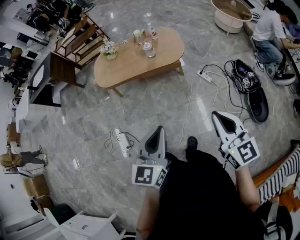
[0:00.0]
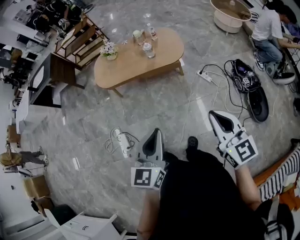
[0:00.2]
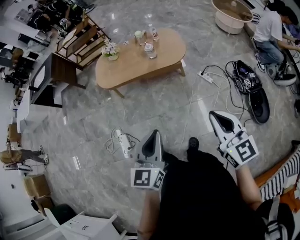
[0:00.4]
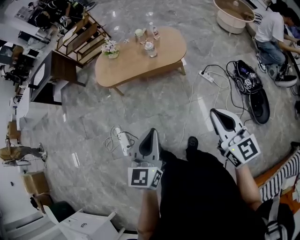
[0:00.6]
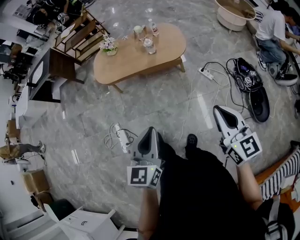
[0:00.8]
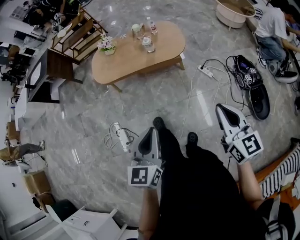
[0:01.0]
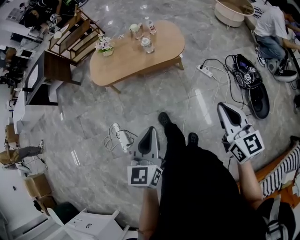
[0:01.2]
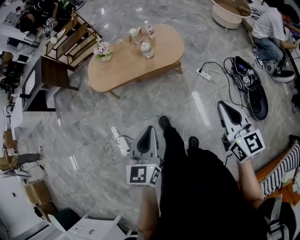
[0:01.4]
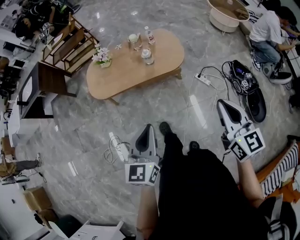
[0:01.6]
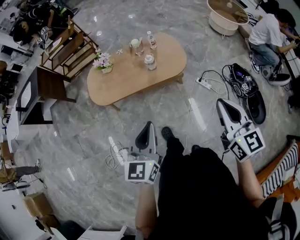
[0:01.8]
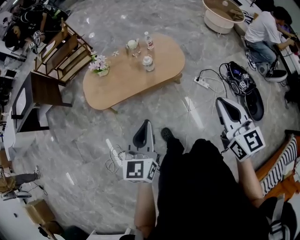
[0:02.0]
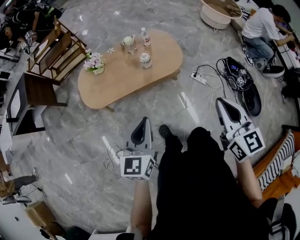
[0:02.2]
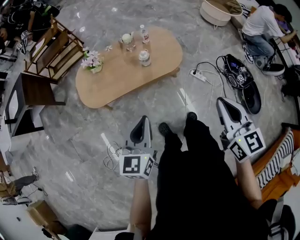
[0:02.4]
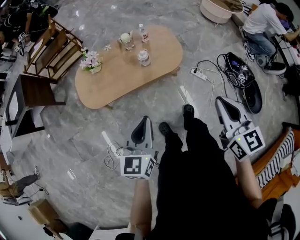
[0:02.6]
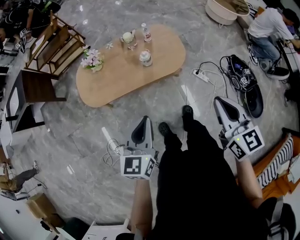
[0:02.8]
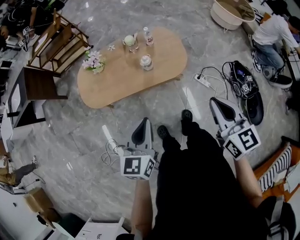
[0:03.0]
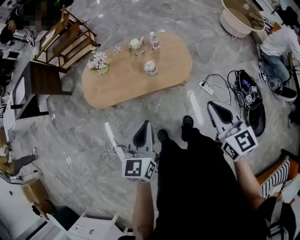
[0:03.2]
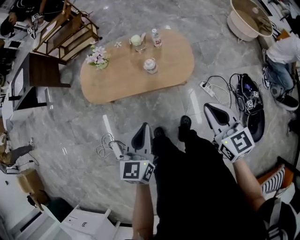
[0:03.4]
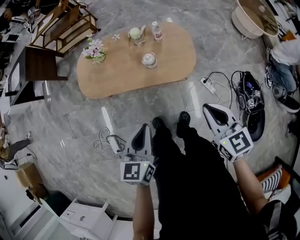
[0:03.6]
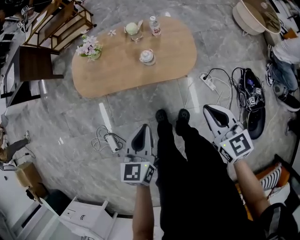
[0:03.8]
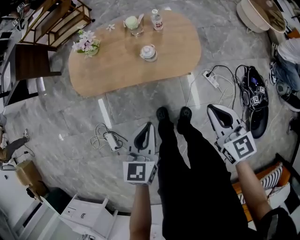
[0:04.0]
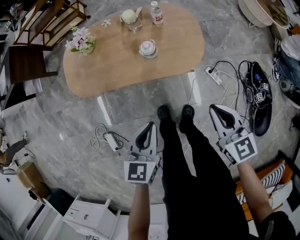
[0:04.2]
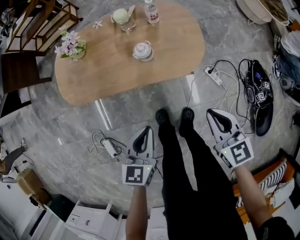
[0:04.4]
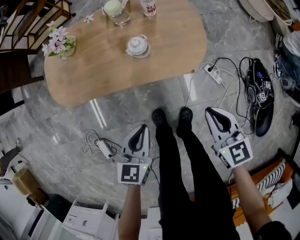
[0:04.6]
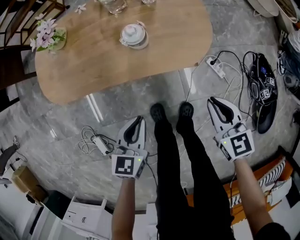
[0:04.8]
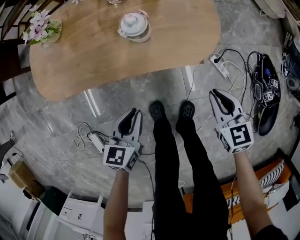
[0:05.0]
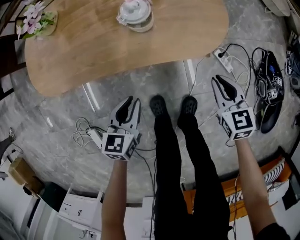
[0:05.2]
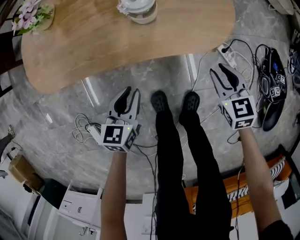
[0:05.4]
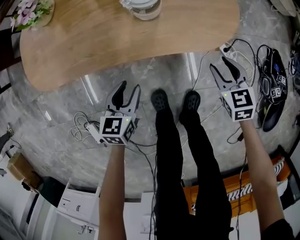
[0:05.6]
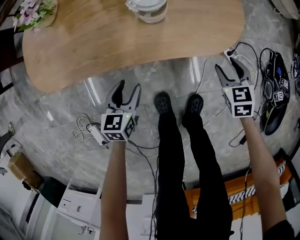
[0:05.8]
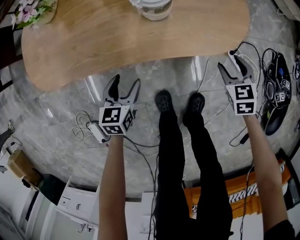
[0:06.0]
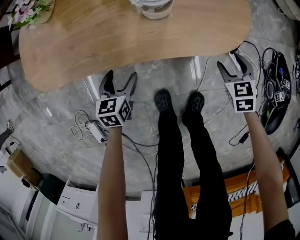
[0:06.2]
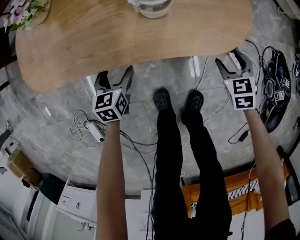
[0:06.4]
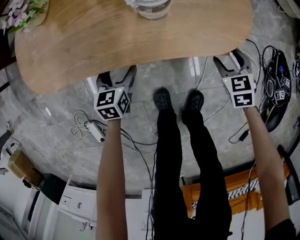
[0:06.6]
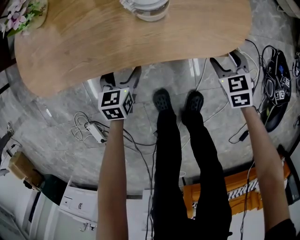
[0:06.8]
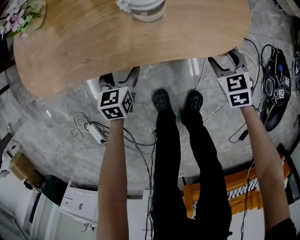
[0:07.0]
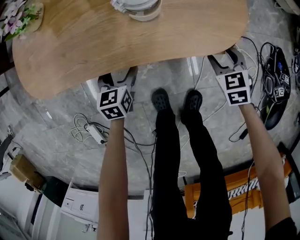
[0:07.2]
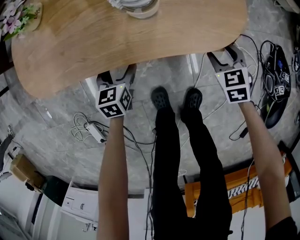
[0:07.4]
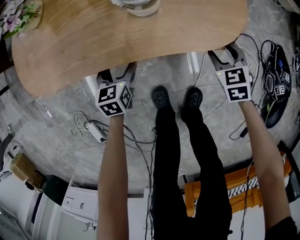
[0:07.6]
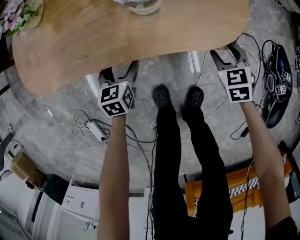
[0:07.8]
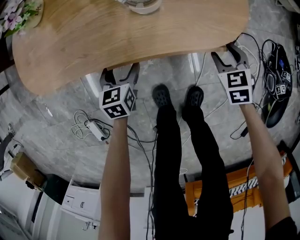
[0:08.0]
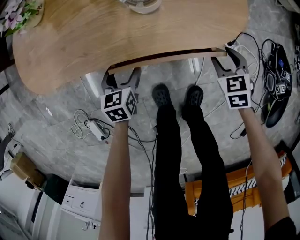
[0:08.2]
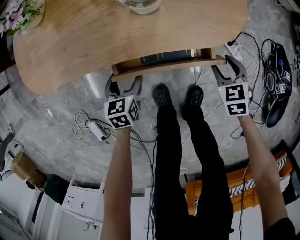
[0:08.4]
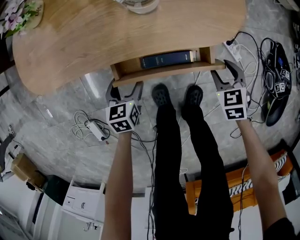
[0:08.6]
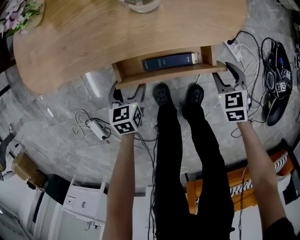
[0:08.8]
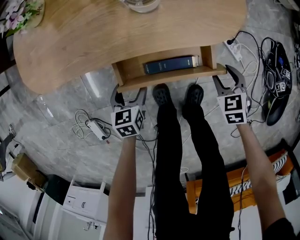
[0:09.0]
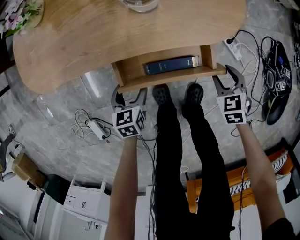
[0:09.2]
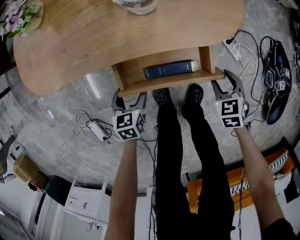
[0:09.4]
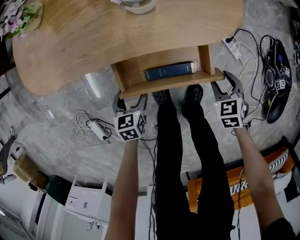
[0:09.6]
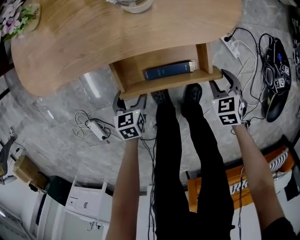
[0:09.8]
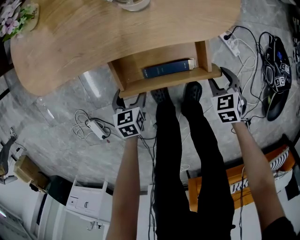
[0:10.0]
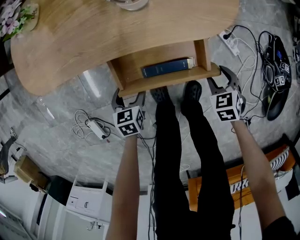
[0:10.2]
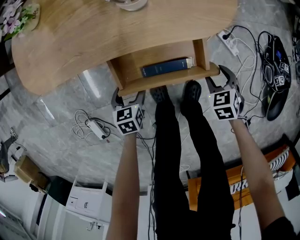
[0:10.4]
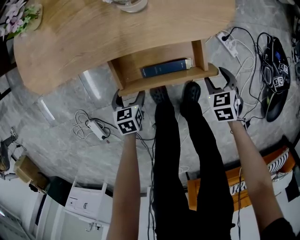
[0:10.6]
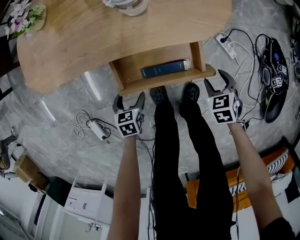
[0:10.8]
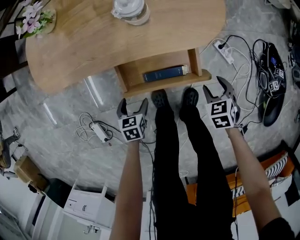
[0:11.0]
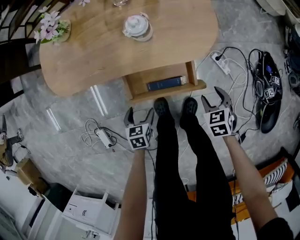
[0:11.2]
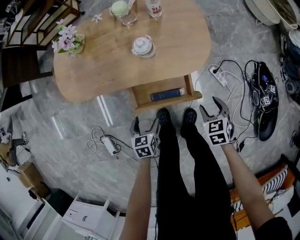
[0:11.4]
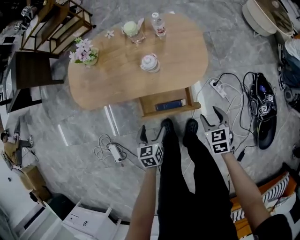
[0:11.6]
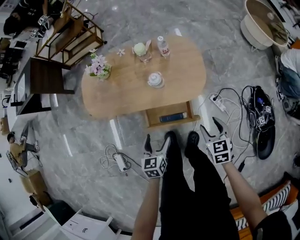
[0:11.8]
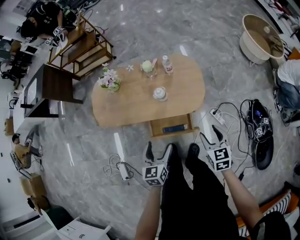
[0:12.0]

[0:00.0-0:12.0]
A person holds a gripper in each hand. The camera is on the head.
0:00.0 to 0:01.6: The right gripper moves forward, about 15 cm, while the left gripper heads forward and to the left, covering approximately 20 cm.
0:01.6 to 0:03.0: The grippers both shift forward by about 20 cm.
0:03.0 to 0:04.4: The two grippers go approximately 25 cm downward.
0:04.4 to 0:06.0: Both grippers move downward, approximately 35 cm. The left gripper opens; the right gripper changes its angle by some 30 degrees, and opens.
0:06.0 to 0:07.6: The left gripper shifts about 5 cm forward.
0:07.6 to 0:09.0: Both grippers travel together backward, some 10 cm.
0:09.0 to 0:10.4: The grippers stay close to where they were, moving slightly.
0:10.4 to 0:12.0: Both grippers travel together upward, roughly 40 cm. The left gripper rotates roughly 30 degrees, while the right gripper changes its angle by roughly 30 degrees.

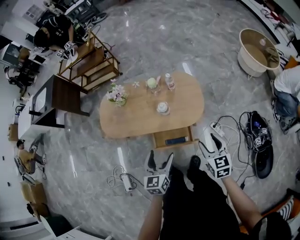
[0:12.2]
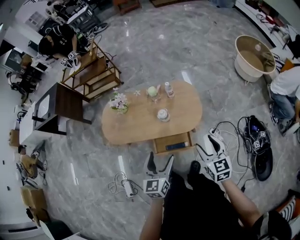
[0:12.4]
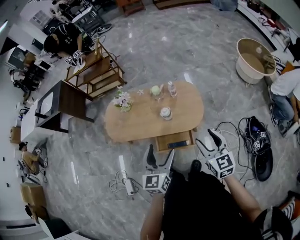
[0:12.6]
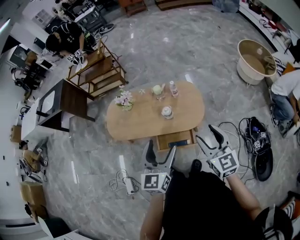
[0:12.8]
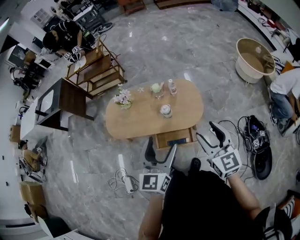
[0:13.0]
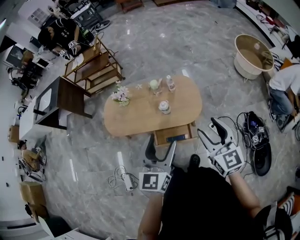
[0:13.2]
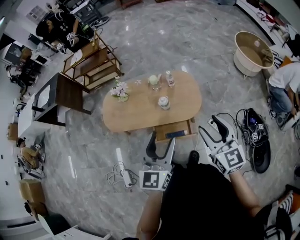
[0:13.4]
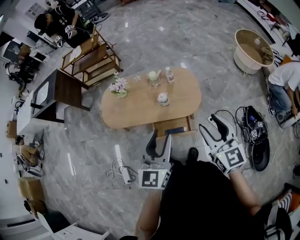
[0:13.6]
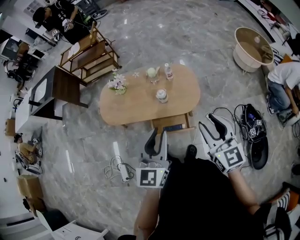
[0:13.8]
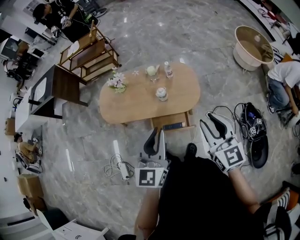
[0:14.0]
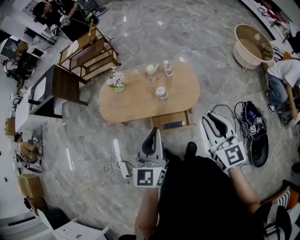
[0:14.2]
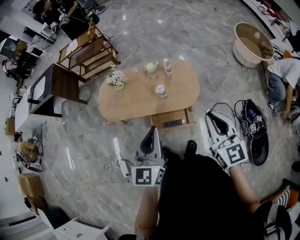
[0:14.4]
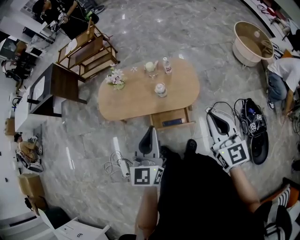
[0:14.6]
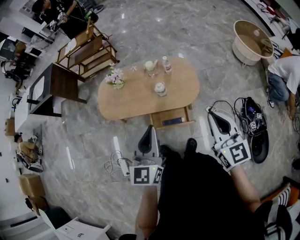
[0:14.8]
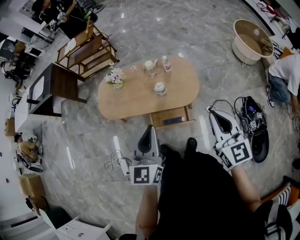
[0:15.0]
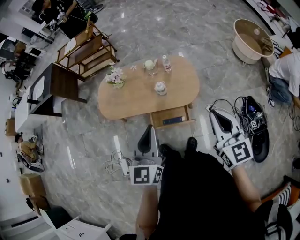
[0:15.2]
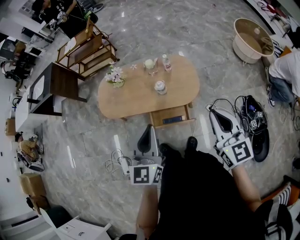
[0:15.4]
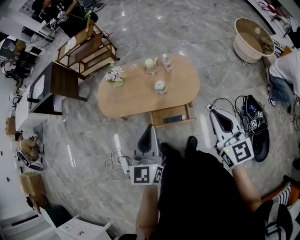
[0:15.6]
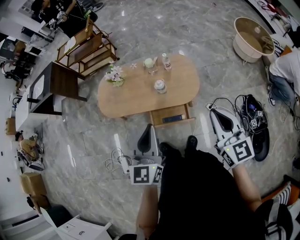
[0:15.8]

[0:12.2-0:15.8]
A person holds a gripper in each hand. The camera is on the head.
0:12.2 to 0:14.0: The two grippers go roughly 20 cm upward. The right gripper turns by roughly 20 degrees, and closes its fingers; the left gripper turns by approximately 20 degrees, and closes its fingers.
0:14.0 to 0:15.8: The right gripper closes.

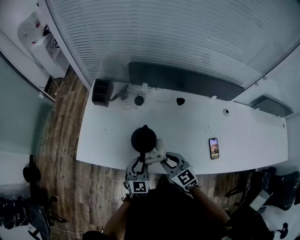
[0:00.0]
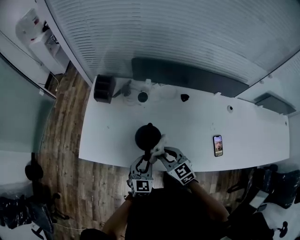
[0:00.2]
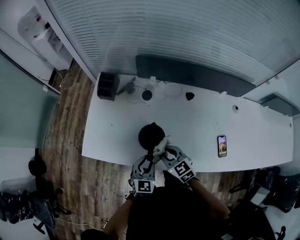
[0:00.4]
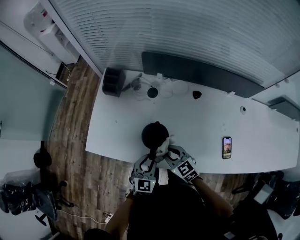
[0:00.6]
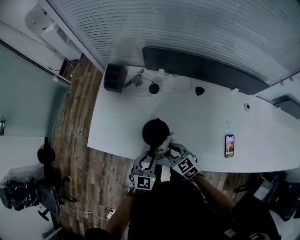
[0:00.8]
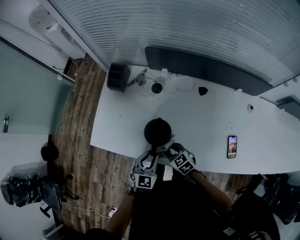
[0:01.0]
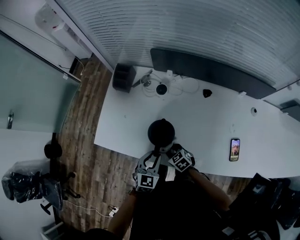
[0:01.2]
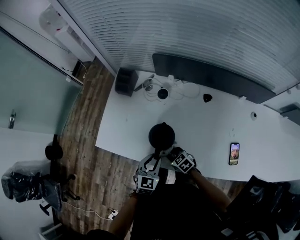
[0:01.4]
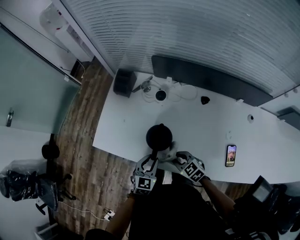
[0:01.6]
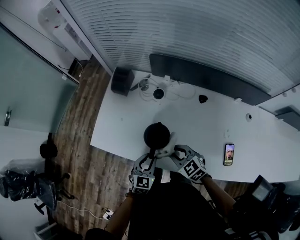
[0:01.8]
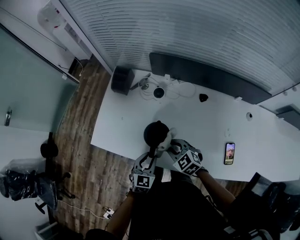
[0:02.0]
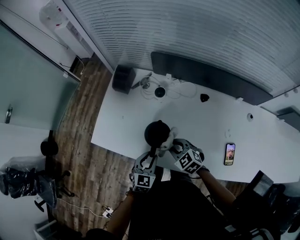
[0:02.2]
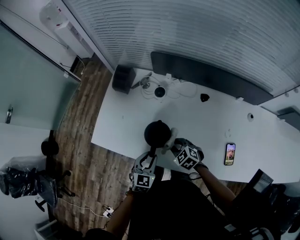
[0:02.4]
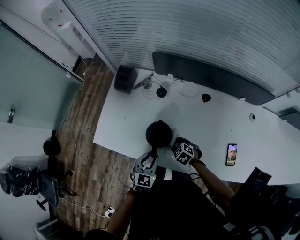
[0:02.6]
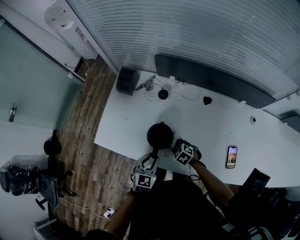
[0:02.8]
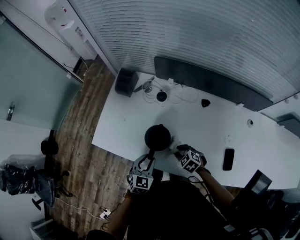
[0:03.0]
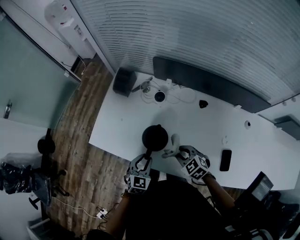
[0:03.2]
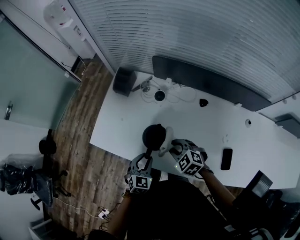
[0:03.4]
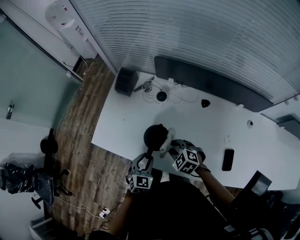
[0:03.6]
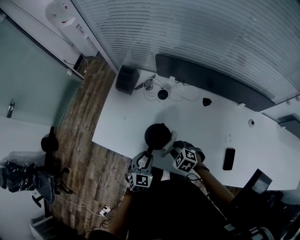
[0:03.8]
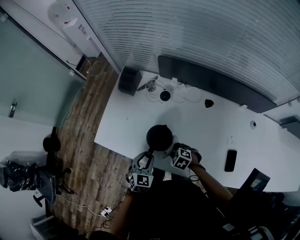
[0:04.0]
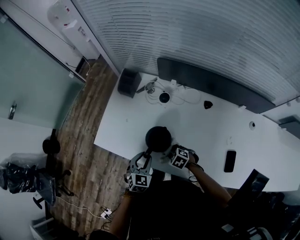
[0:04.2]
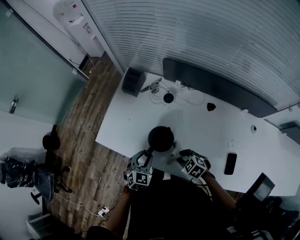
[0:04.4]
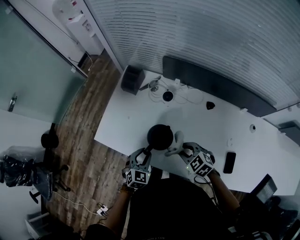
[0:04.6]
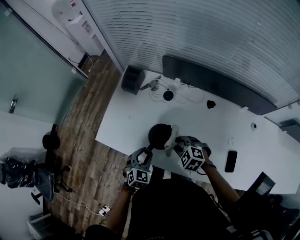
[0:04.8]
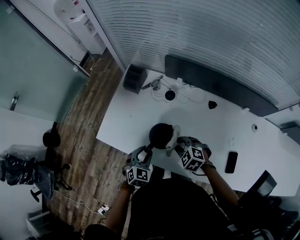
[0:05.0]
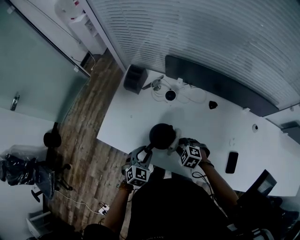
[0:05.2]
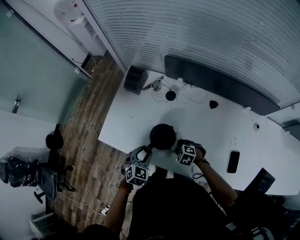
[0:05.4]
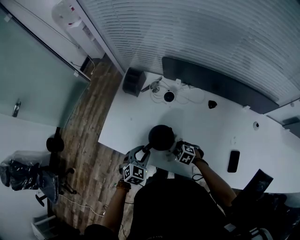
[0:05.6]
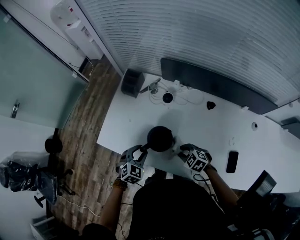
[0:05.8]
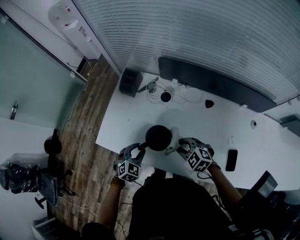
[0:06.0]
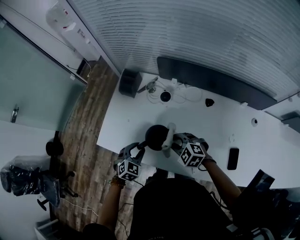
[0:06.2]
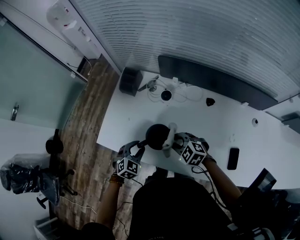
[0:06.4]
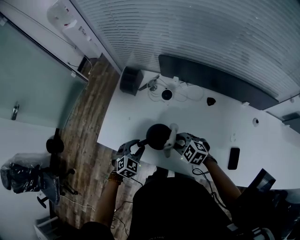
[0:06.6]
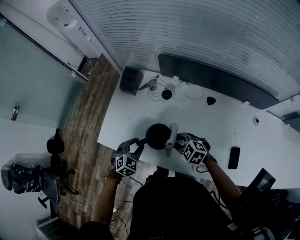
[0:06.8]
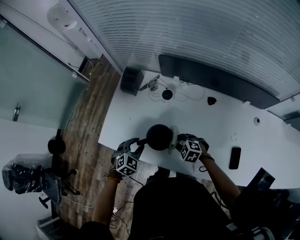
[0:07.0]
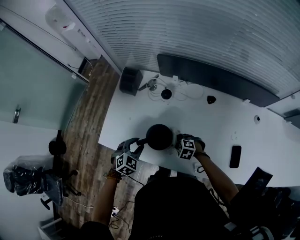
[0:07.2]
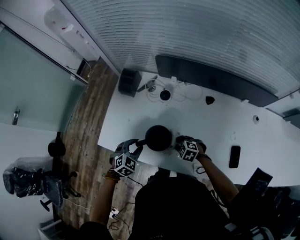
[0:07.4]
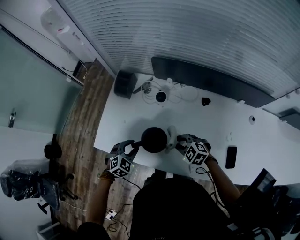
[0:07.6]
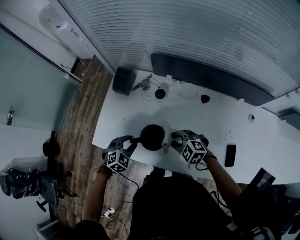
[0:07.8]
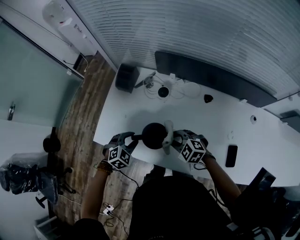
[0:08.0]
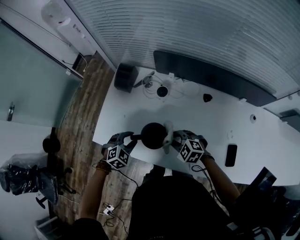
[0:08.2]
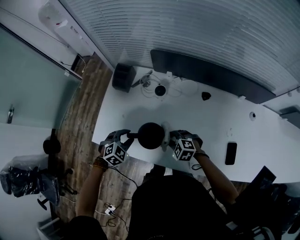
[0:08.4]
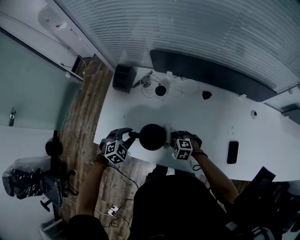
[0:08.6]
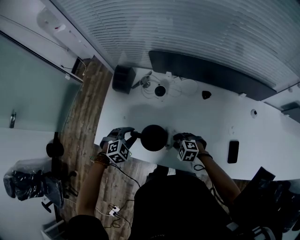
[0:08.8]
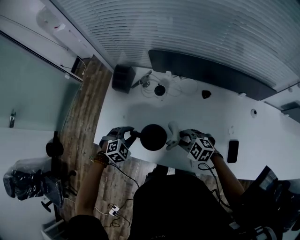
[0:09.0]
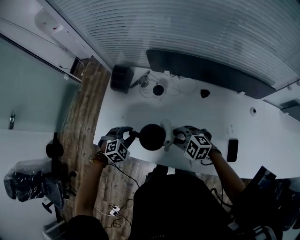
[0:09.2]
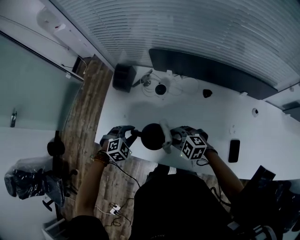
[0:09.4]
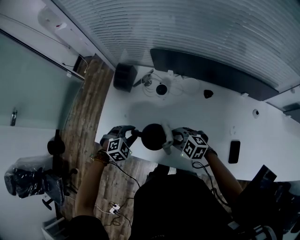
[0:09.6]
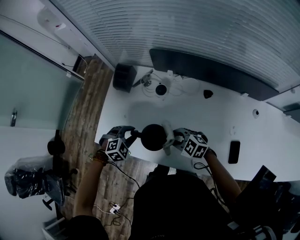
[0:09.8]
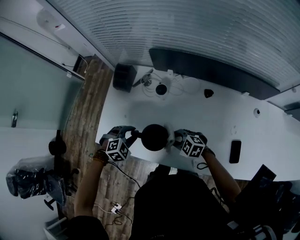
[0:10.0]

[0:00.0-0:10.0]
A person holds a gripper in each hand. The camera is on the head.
0:00.0 to 0:01.4: The right gripper goes some 20 cm downward, and rotates some 30 degrees.
0:01.4 to 0:02.8: The right gripper moves to the right, some 5 cm, moves roughly 15 cm upward and comes back, and rotates some 20 degrees.
0:02.8 to 0:04.2: The right gripper goes upward and returns, some 15 cm each way.
0:04.2 to 0:05.8: The right gripper moves up and down over approximately 15 cm, changing direction 2 times.
0:05.8 to 0:07.2: The right gripper is displaced downward by about 5 cm.
0:07.2 to 0:08.6: The right gripper goes upward and returns, some 15 cm each way.
0:08.6 to 0:10.0: The right gripper heads upward, covering some 5 cm.
